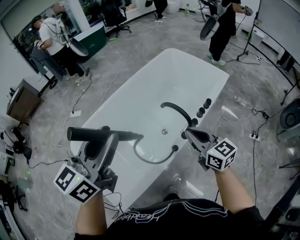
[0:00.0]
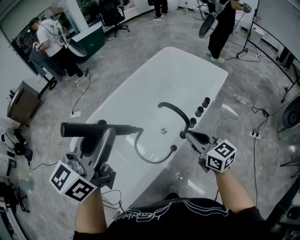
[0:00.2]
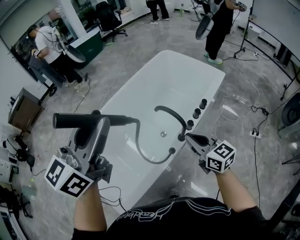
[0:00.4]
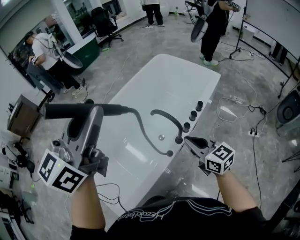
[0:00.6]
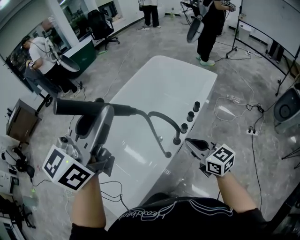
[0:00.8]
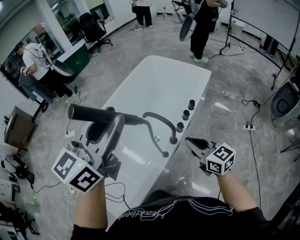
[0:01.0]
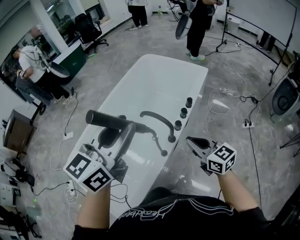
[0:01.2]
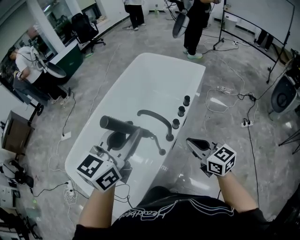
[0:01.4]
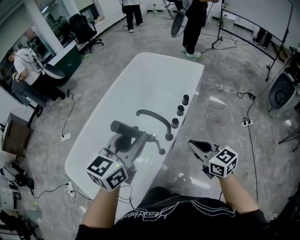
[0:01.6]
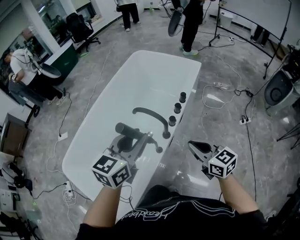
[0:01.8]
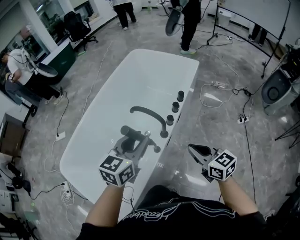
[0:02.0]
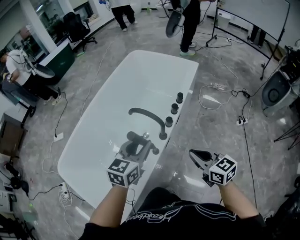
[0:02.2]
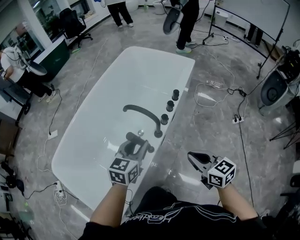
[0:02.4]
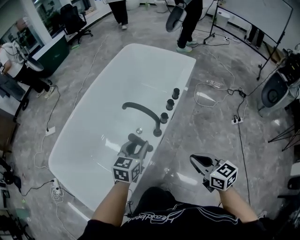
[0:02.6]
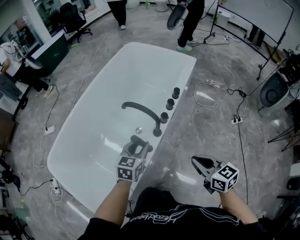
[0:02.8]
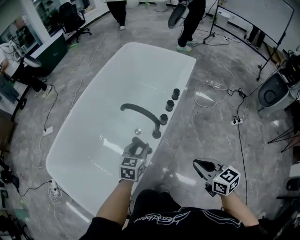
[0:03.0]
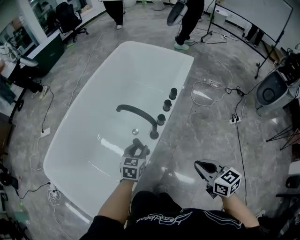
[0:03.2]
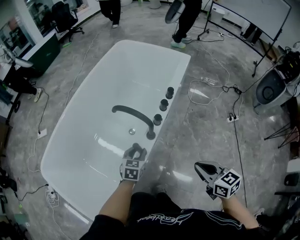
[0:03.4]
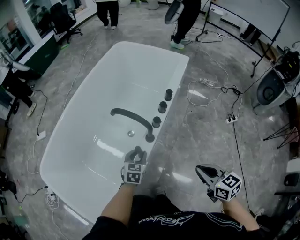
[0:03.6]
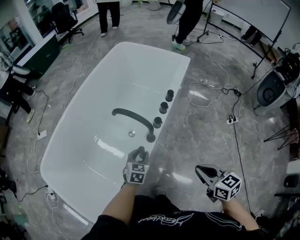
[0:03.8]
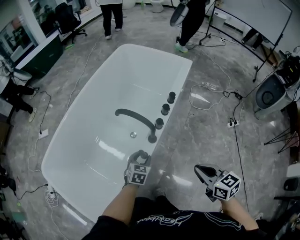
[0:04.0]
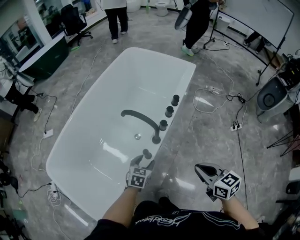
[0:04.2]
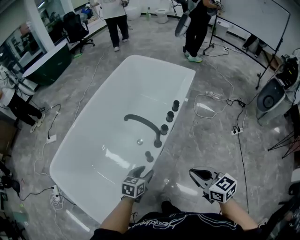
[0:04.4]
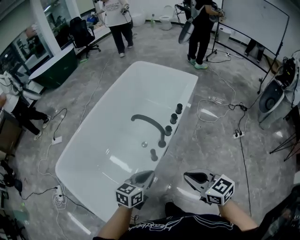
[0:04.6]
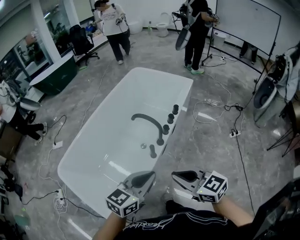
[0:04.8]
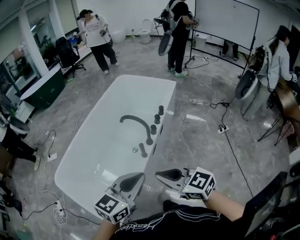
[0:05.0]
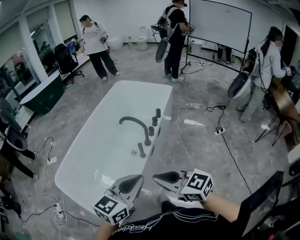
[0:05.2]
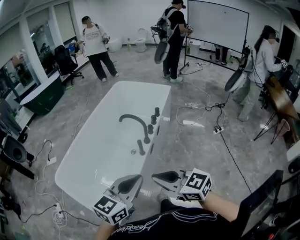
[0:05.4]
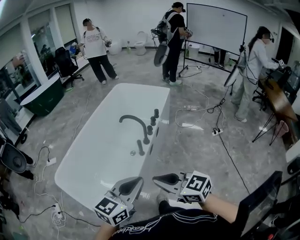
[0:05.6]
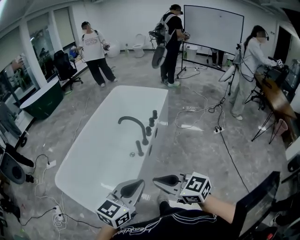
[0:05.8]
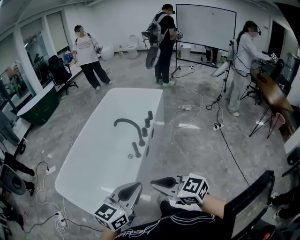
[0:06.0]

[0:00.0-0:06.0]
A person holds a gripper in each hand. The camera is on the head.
0:00.0 to 0:01.6: The left gripper shifts roughly 20 cm to the right and downward, and rotates approximately 20 degrees; the right gripper goes about 10 cm to the right.
0:01.6 to 0:03.0: The left gripper heads downward, covering roughly 30 cm, and turns by some 20 degrees. Meanwhile the right gripper goes some 15 cm downward, backward and to the right.
0:03.0 to 0:04.4: The left gripper goes some 10 cm backward.
0:04.4 to 0:06.0: The left gripper moves upward and backward, about 40 cm, turns by some 40 degrees, and closes; the right gripper moves backward, to the left and upward, approximately 30 cm.

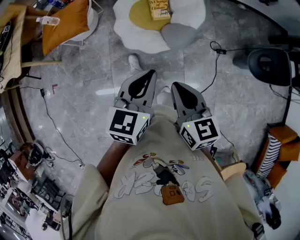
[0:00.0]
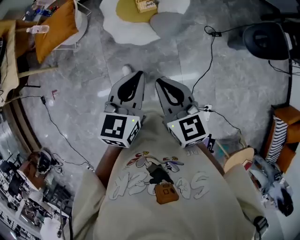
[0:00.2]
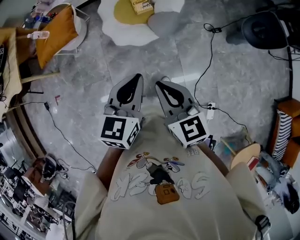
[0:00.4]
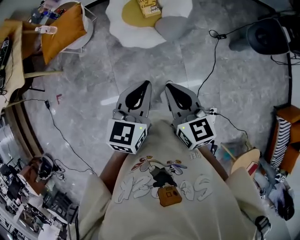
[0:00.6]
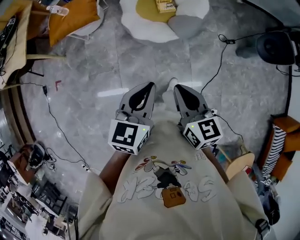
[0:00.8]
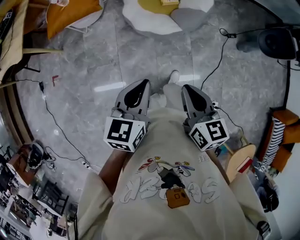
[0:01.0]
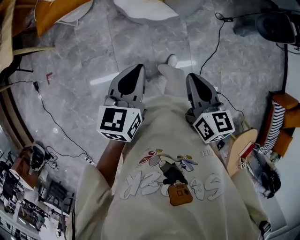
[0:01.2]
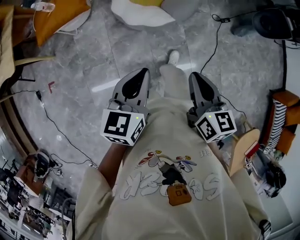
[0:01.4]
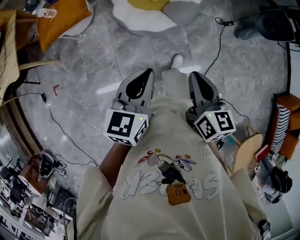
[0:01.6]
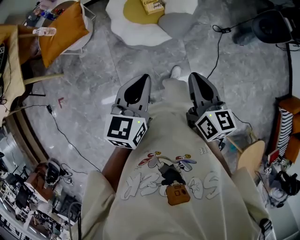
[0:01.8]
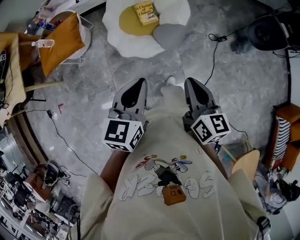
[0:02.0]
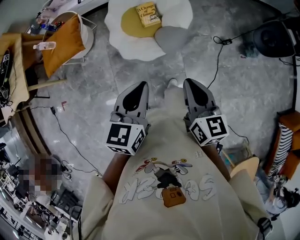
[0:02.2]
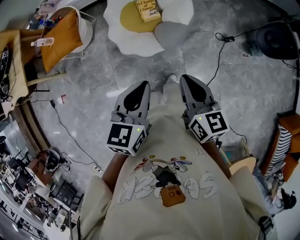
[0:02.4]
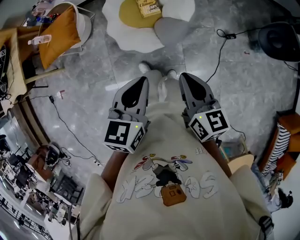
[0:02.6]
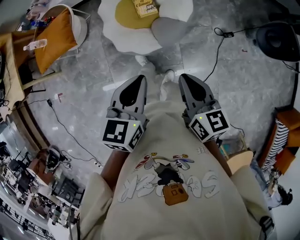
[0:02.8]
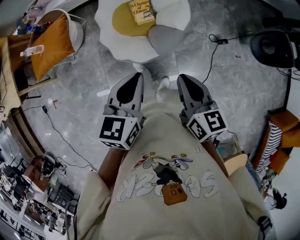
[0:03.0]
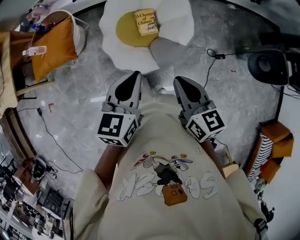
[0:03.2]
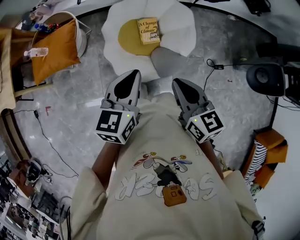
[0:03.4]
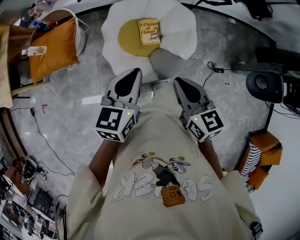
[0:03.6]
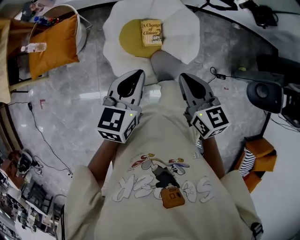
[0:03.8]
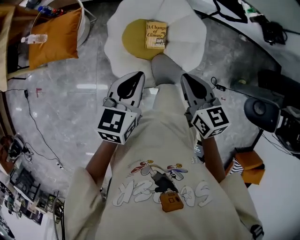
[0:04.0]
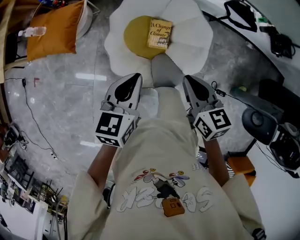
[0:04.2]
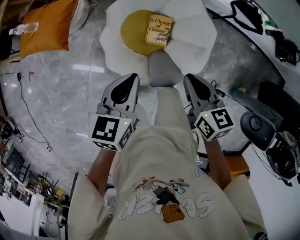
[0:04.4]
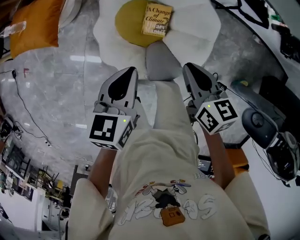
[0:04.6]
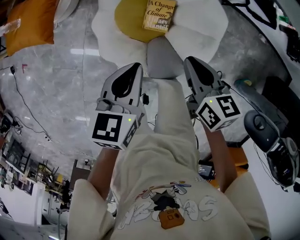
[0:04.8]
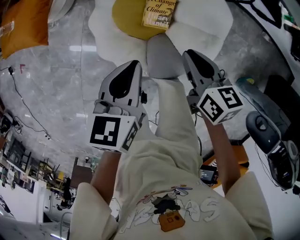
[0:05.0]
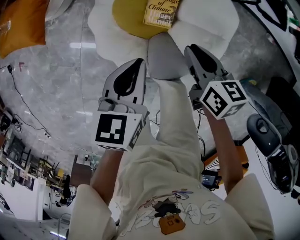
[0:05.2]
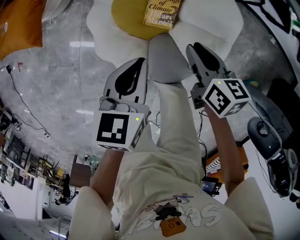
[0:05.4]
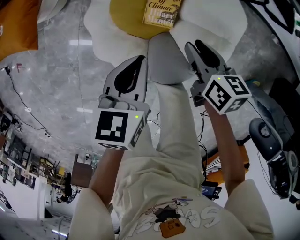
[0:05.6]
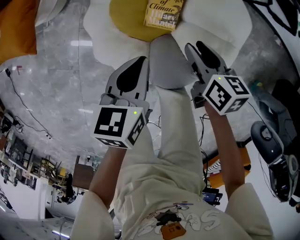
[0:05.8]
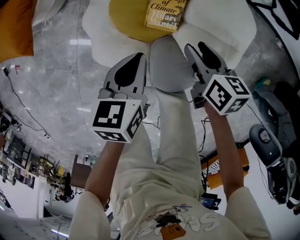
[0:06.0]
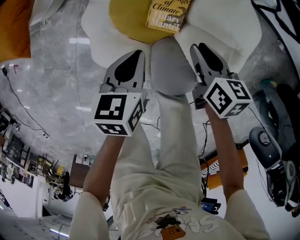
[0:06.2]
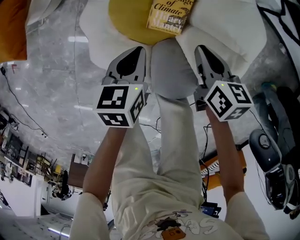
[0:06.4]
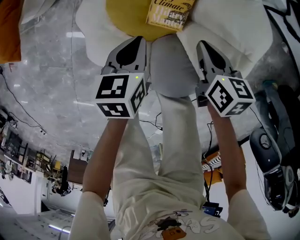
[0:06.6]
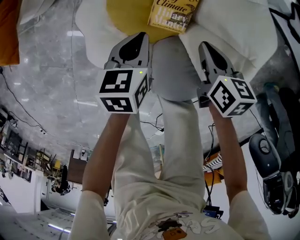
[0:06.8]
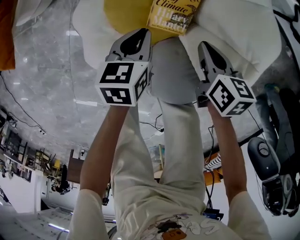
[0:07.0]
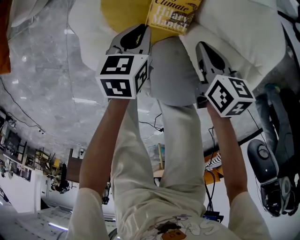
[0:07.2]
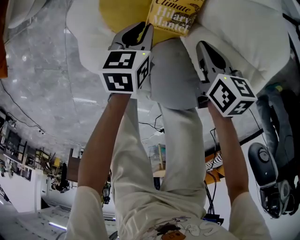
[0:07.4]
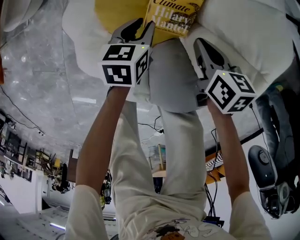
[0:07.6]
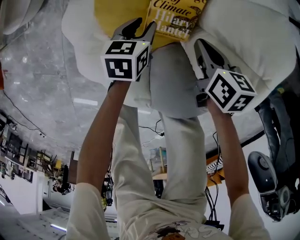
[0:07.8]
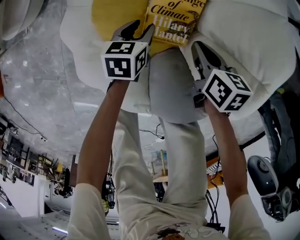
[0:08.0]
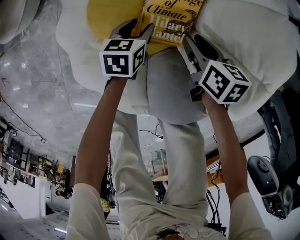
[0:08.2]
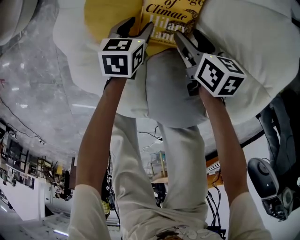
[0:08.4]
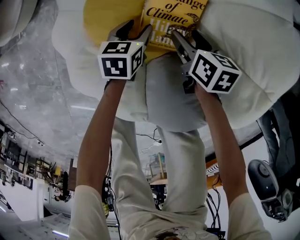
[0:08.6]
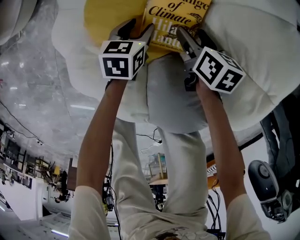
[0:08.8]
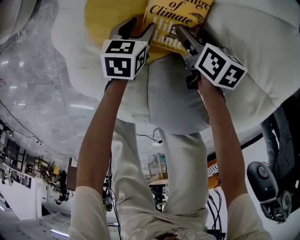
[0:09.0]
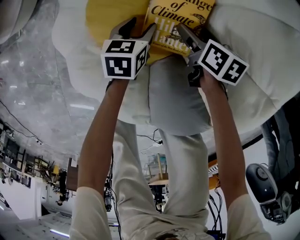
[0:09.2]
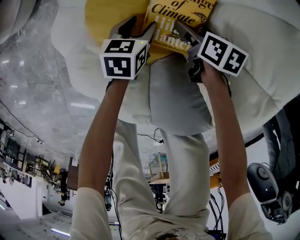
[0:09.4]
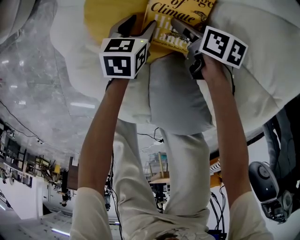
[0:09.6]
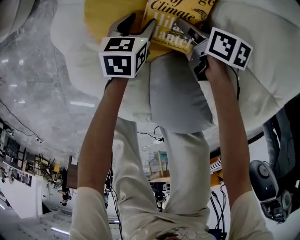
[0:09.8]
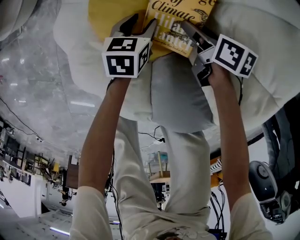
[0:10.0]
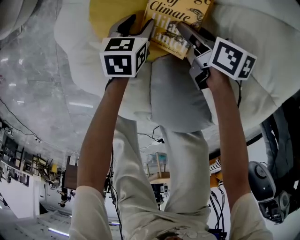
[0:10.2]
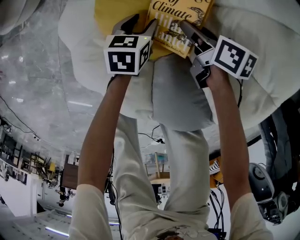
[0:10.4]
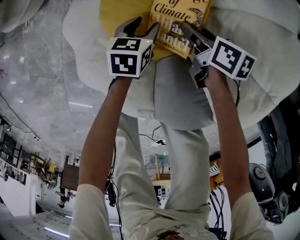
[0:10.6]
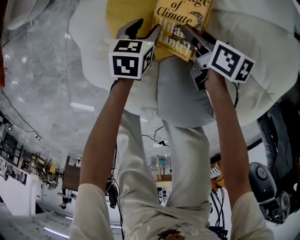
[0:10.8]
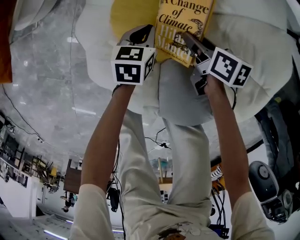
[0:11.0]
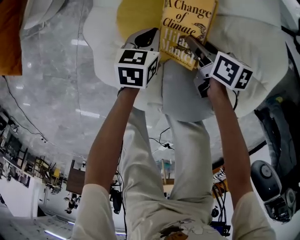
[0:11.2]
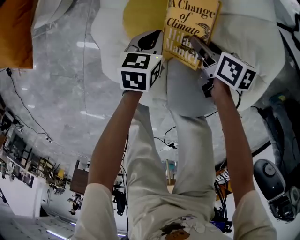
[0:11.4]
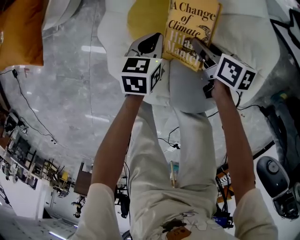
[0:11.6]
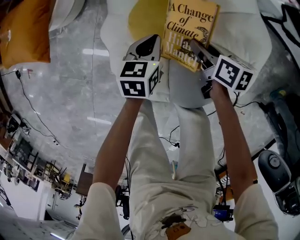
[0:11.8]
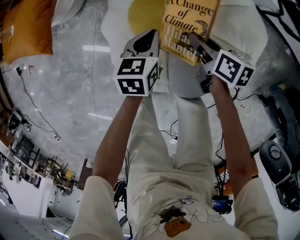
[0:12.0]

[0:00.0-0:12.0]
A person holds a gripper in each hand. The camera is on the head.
0:00.0 to 0:01.6: The left gripper moves to the left and backward, some 20 cm. The right gripper shifts about 10 cm backward and to the left.
0:01.6 to 0:03.0: Both grippers move forward and to the right, some 30 cm.
0:03.0 to 0:04.4: The grippers both shift forward by approximately 30 cm. The left gripper swivels some 20 degrees. The right gripper rotates roughly 30 degrees.
0:04.4 to 0:06.0: Both grippers move downward, roughly 30 cm. The right gripper opens.
0:06.0 to 0:07.6: The right gripper shifts about 20 cm downward, and closes. Meanwhile the left gripper moves downward, some 30 cm, and opens its fingers.
0:07.6 to 0:09.0: The grippers both shift downward by some 10 cm. The left gripper opens; the right gripper opens its fingers.
0:09.0 to 0:10.4: The right gripper closes its fingers.
0:10.4 to 0:12.0: Both grippers travel together upward, some 25 cm. The left gripper closes up.

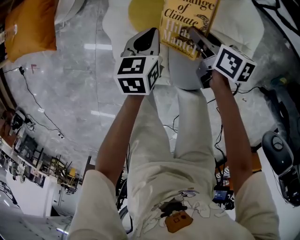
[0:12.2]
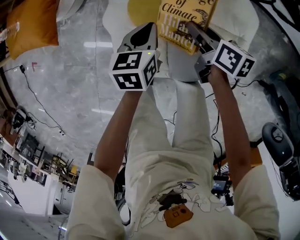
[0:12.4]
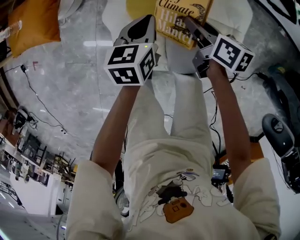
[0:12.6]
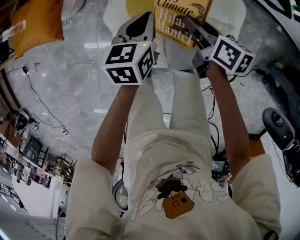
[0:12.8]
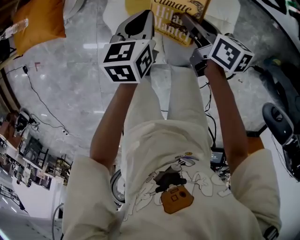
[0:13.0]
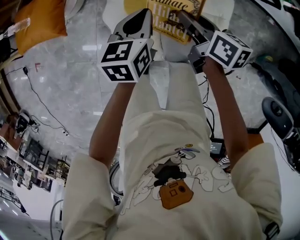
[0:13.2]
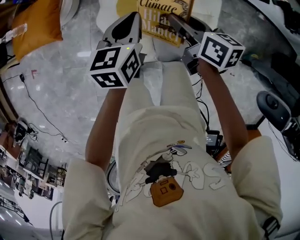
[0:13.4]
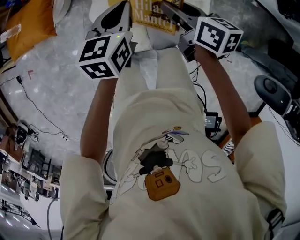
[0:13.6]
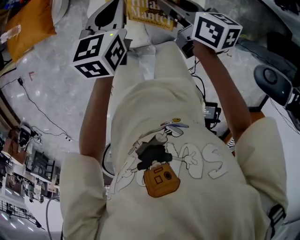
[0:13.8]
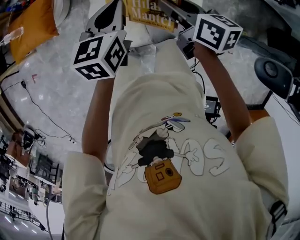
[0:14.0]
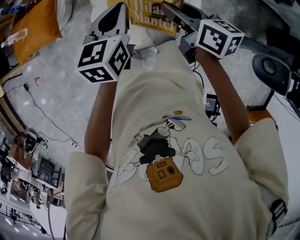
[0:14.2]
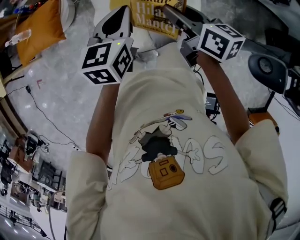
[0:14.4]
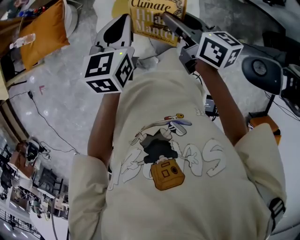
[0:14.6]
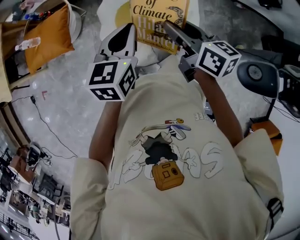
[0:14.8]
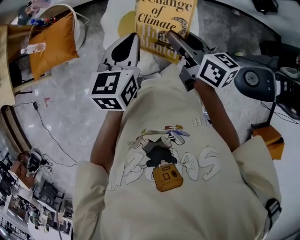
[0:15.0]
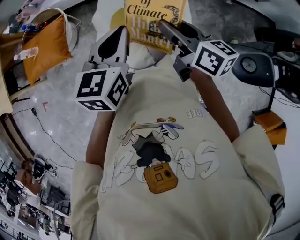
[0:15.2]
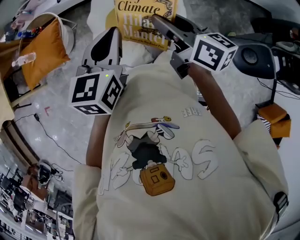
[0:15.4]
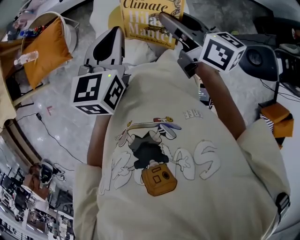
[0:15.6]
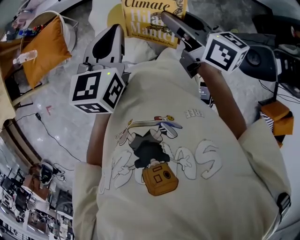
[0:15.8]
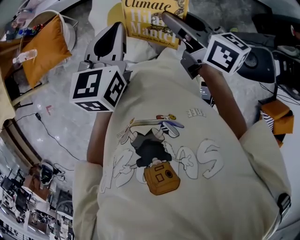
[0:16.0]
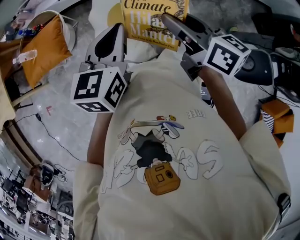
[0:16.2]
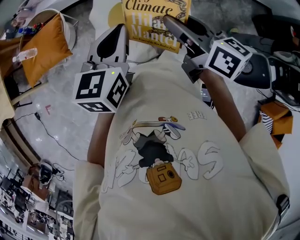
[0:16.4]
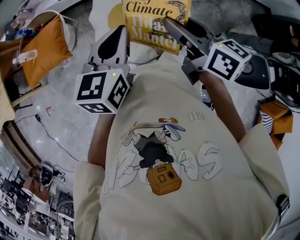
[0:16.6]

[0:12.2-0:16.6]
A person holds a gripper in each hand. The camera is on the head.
0:12.2 to 0:13.6: Both grippers travel together upward, about 30 cm.
0:13.6 to 0:15.2: Both grippers move upward, backward and to the left, about 20 cm. The right gripper changes its angle by roughly 20 degrees.
0:15.2 to 0:16.6: The right gripper changes place by approximately 5 cm.

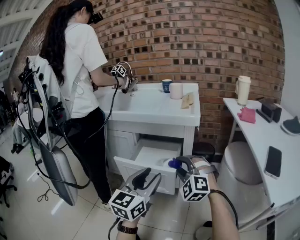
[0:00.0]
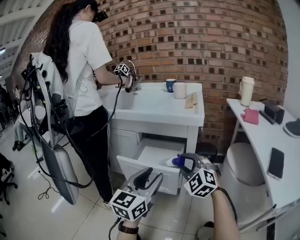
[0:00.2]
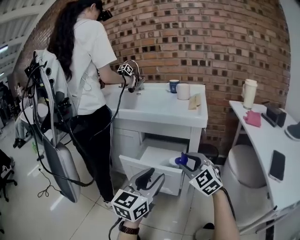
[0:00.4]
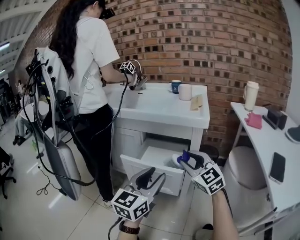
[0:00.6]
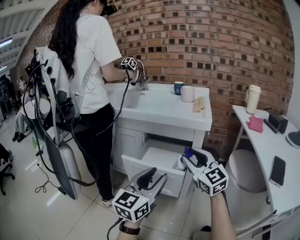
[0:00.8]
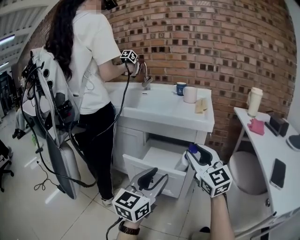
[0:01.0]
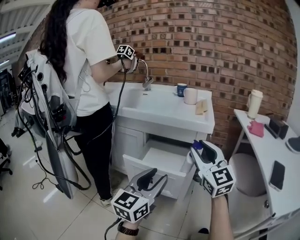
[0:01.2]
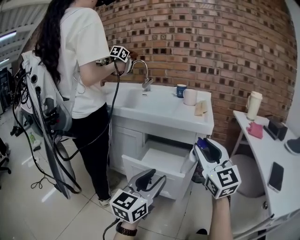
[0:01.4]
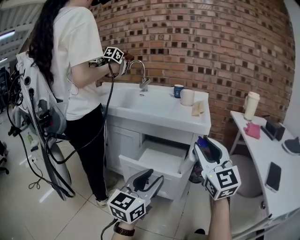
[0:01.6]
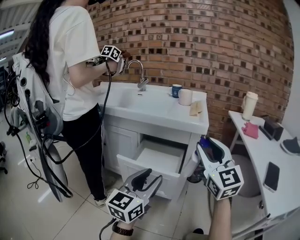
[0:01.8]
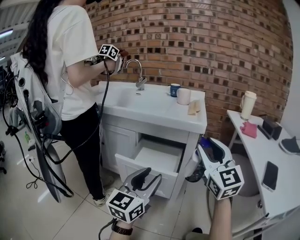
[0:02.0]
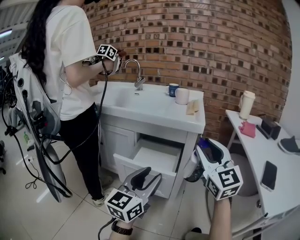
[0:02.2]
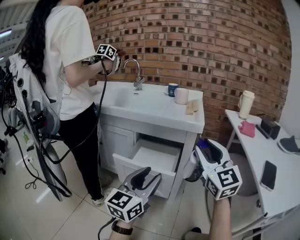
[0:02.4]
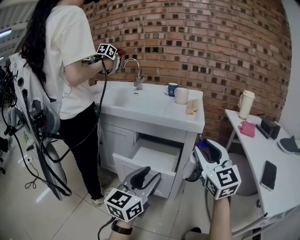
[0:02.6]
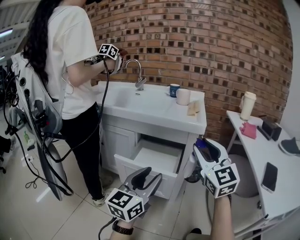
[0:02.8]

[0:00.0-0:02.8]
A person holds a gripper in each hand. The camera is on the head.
0:00.0 to 0:01.4: The right gripper is displaced upward by about 15 cm, and rotates around the line of its fingers by about 50 degrees, clockwise from behind.
0:01.4 to 0:02.8: The grippers move only a little.
